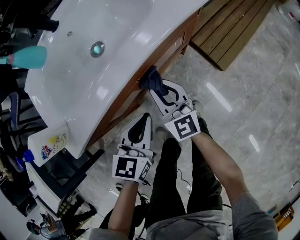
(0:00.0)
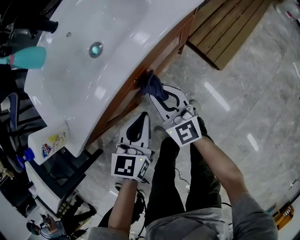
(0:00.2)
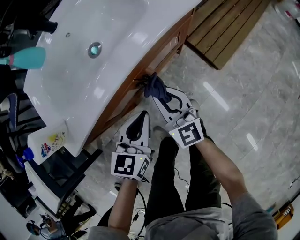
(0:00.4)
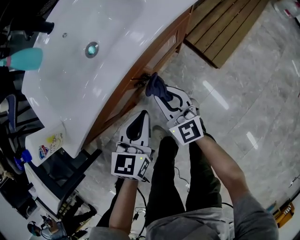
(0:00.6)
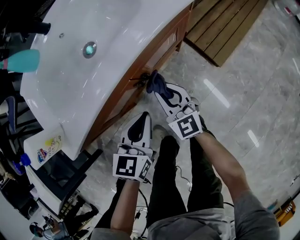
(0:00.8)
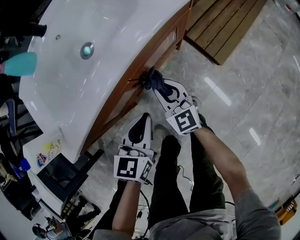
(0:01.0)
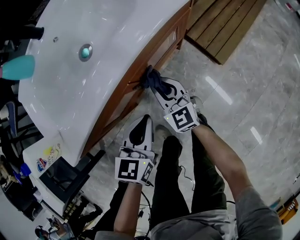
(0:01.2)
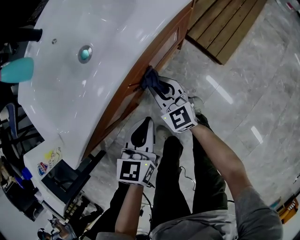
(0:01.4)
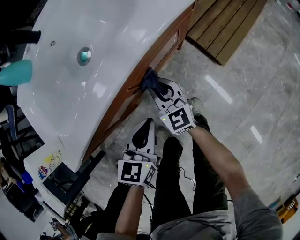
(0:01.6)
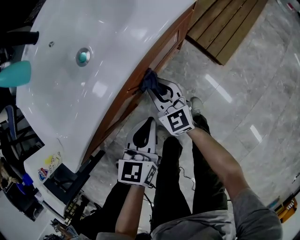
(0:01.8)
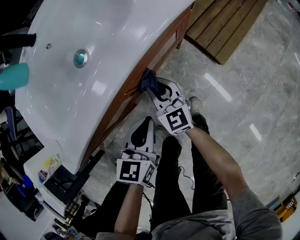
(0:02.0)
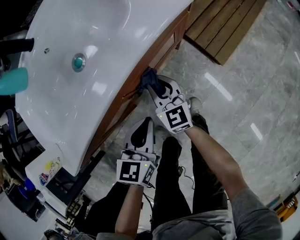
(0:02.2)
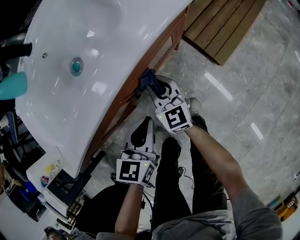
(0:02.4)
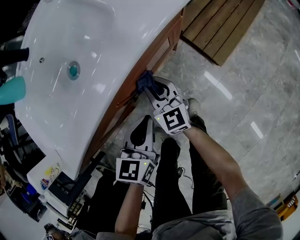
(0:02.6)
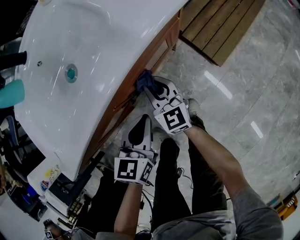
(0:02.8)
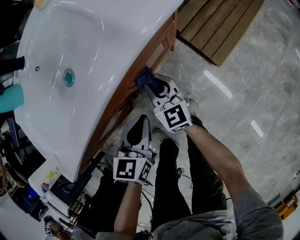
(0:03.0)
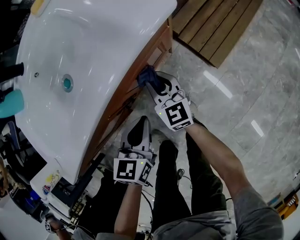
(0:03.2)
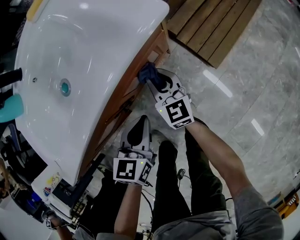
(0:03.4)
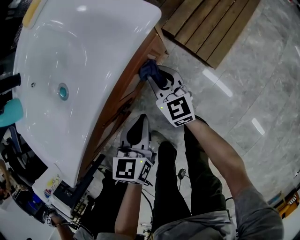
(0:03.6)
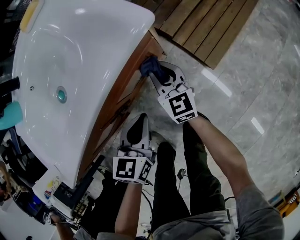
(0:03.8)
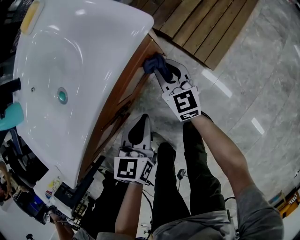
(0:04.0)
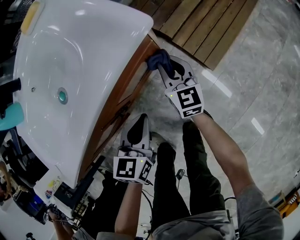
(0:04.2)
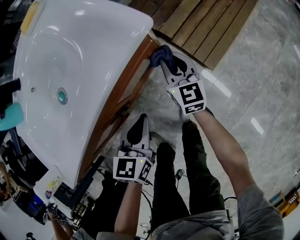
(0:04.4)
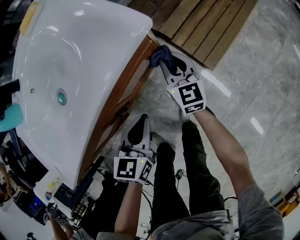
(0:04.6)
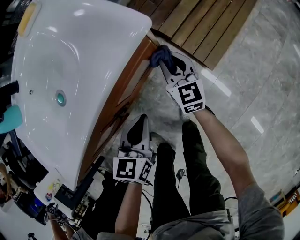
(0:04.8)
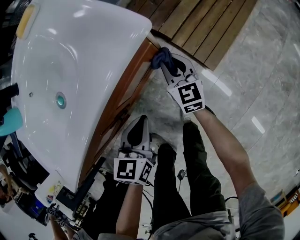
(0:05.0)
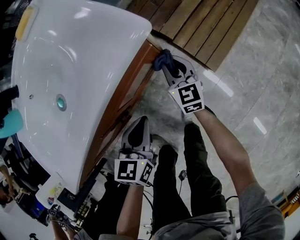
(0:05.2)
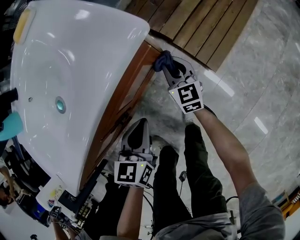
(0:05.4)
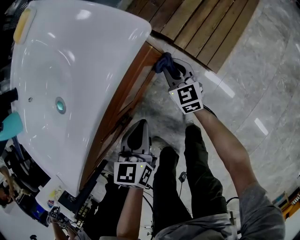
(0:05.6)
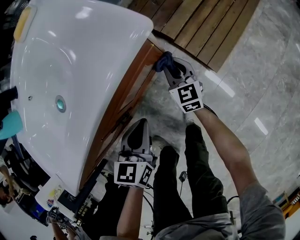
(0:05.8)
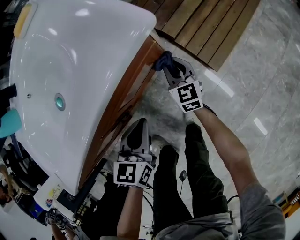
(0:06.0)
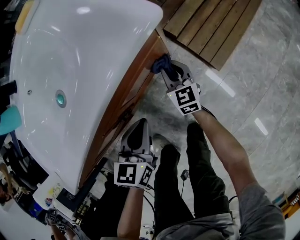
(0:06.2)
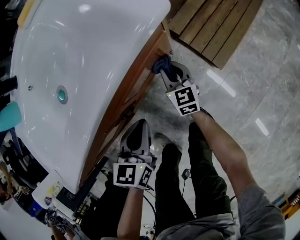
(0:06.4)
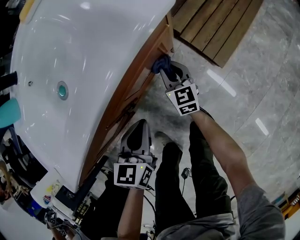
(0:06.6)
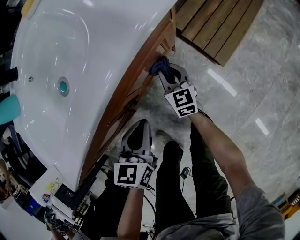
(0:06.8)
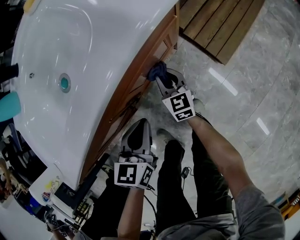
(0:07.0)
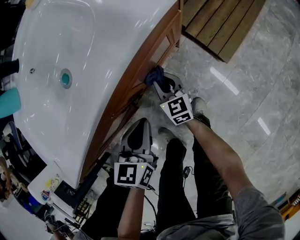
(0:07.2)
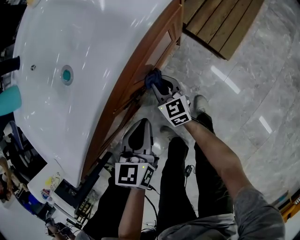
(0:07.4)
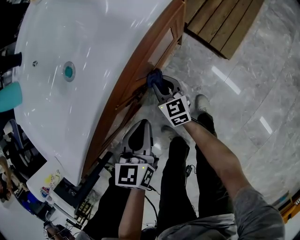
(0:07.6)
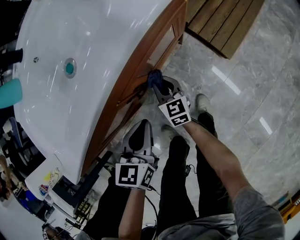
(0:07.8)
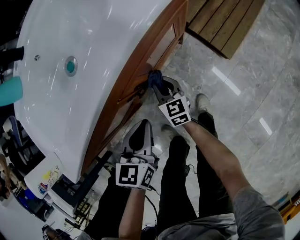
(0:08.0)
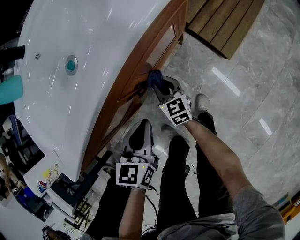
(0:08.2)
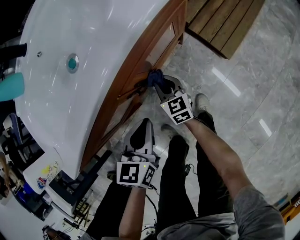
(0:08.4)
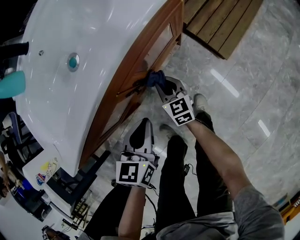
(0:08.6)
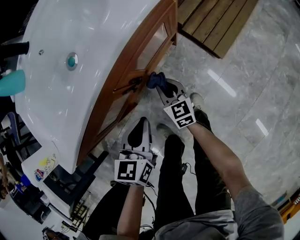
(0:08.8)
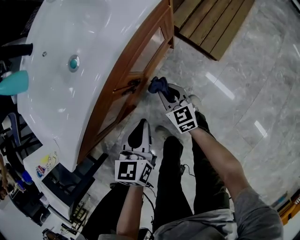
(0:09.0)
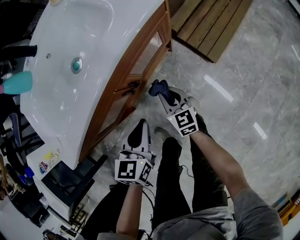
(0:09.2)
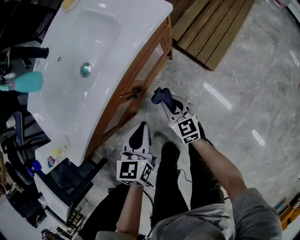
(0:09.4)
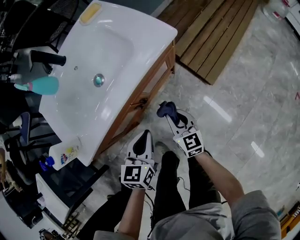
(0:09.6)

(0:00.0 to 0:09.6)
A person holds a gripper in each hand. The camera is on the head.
0:00.0 - 0:01.6: The right gripper heads downward, covering some 10 cm.
0:01.6 - 0:03.2: The left gripper heads forward and to the right, covering about 10 cm. Meanwhile the right gripper is displaced to the right and forward by roughly 10 cm.
0:03.2 - 0:04.8: The left gripper moves about 5 cm; the right gripper moves to the right and forward, roughly 15 cm.
0:04.8 - 0:06.4: The right gripper travels downward by roughly 10 cm.
0:06.4 - 0:08.0: The right gripper travels to the left and backward by roughly 15 cm. The left gripper travels backward and to the left by roughly 10 cm.
0:08.0 - 0:09.6: The left gripper moves upward, approximately 10 cm, while the right gripper heads upward, to the right and backward, covering approximately 20 cm.

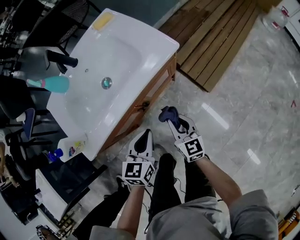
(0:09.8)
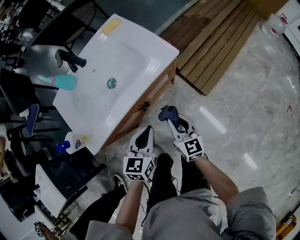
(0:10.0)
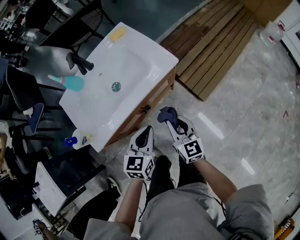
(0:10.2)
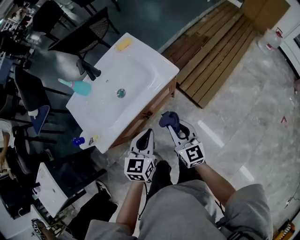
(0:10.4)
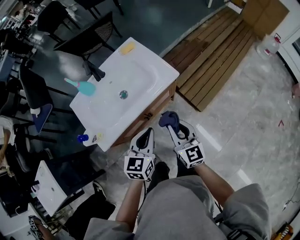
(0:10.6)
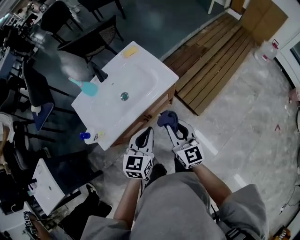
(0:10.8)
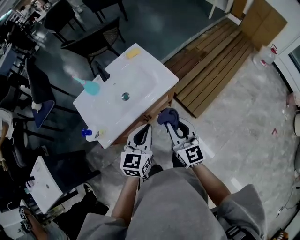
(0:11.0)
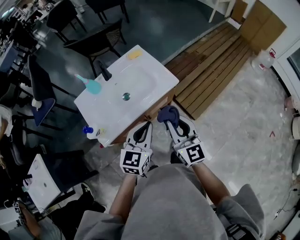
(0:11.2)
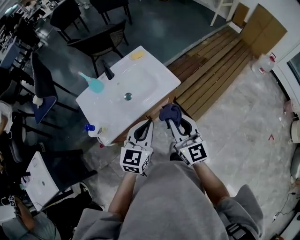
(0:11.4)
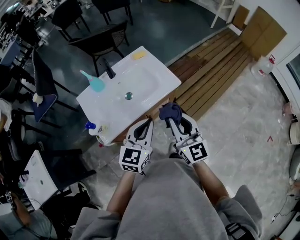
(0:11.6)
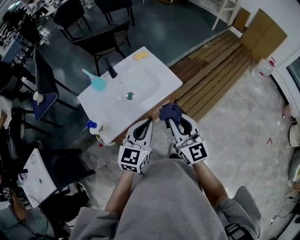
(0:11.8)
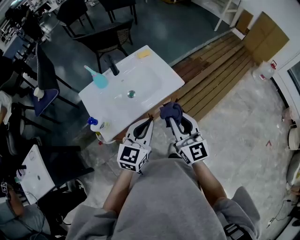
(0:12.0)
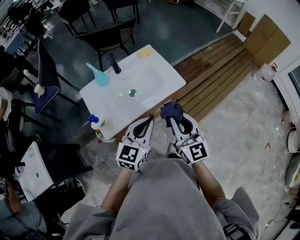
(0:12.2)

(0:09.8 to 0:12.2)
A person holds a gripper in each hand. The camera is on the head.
0:09.8 - 0:11.0: The grippers both shift upward by about 25 cm.
0:11.0 - 0:12.2: The right gripper heads upward, covering some 5 cm; the left gripper ends up approximately 5 cm from where it was.

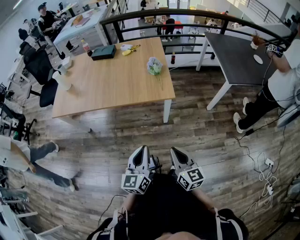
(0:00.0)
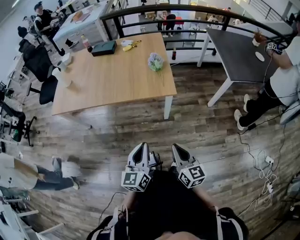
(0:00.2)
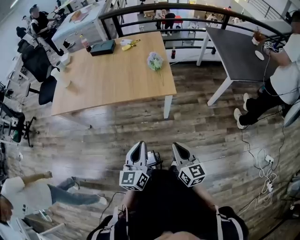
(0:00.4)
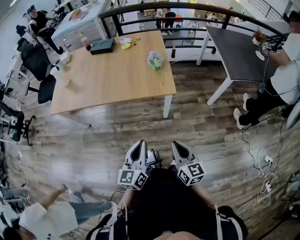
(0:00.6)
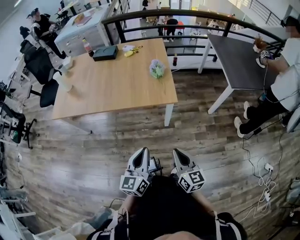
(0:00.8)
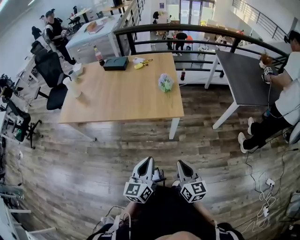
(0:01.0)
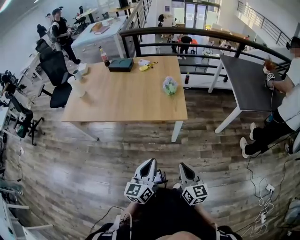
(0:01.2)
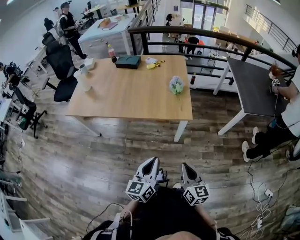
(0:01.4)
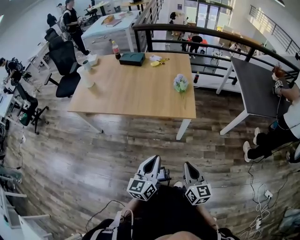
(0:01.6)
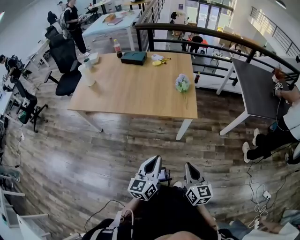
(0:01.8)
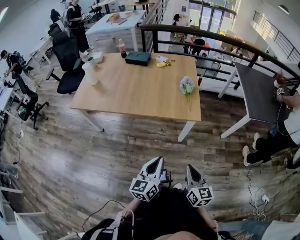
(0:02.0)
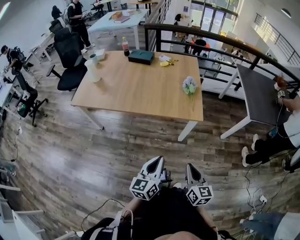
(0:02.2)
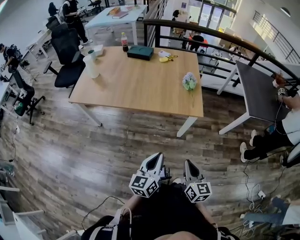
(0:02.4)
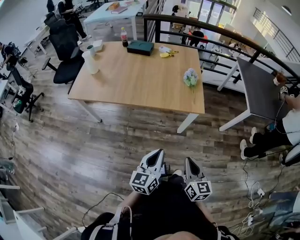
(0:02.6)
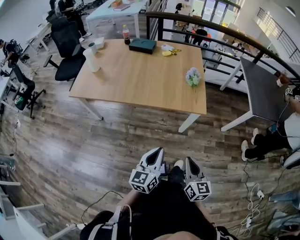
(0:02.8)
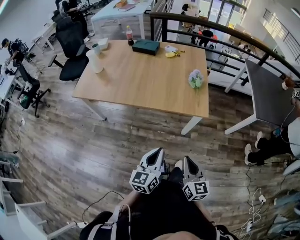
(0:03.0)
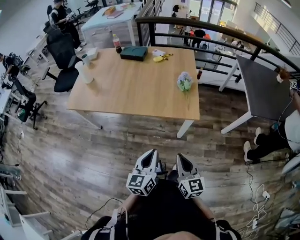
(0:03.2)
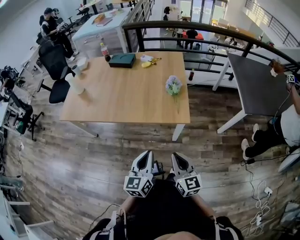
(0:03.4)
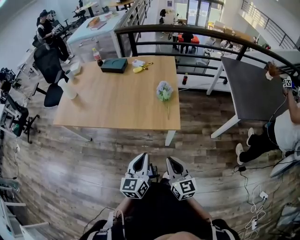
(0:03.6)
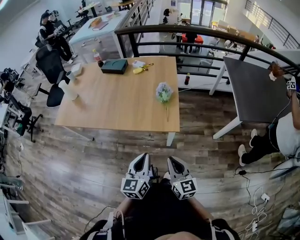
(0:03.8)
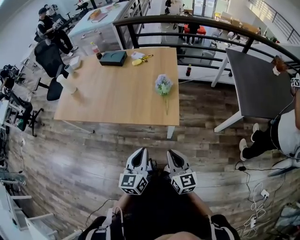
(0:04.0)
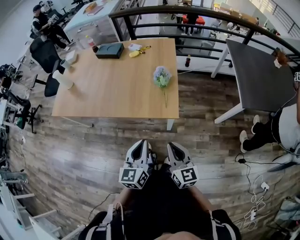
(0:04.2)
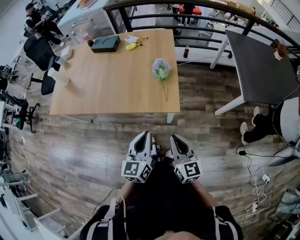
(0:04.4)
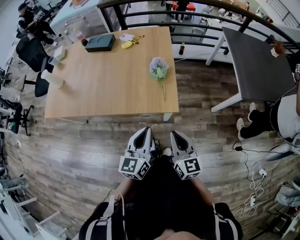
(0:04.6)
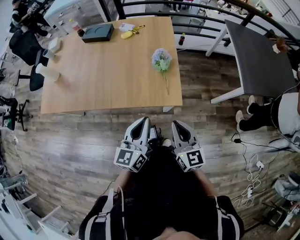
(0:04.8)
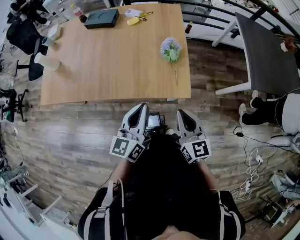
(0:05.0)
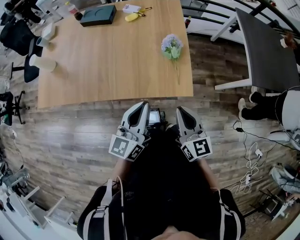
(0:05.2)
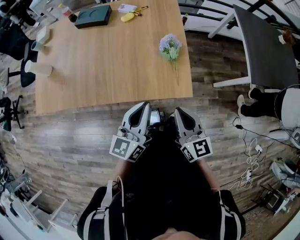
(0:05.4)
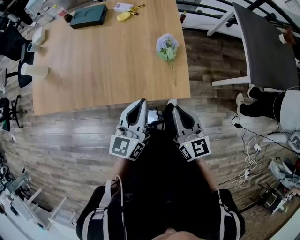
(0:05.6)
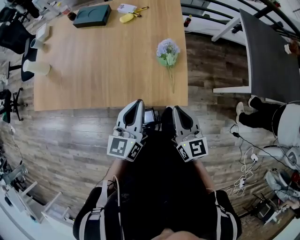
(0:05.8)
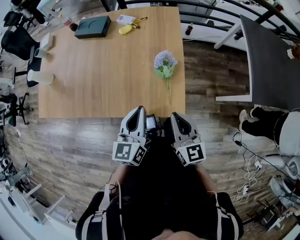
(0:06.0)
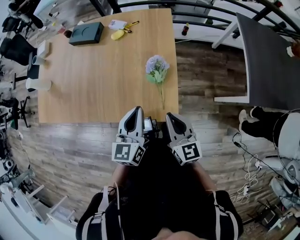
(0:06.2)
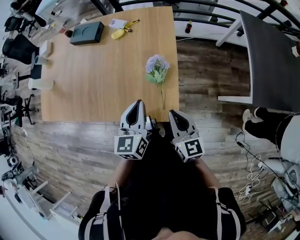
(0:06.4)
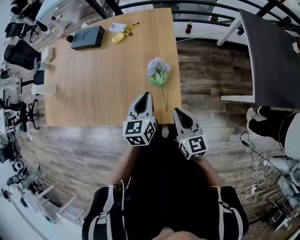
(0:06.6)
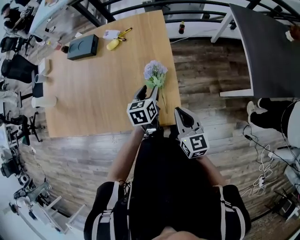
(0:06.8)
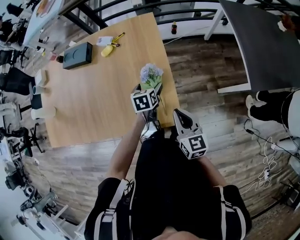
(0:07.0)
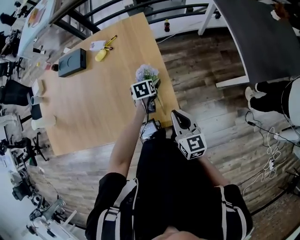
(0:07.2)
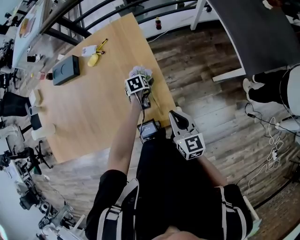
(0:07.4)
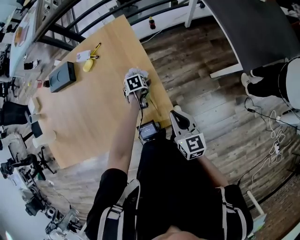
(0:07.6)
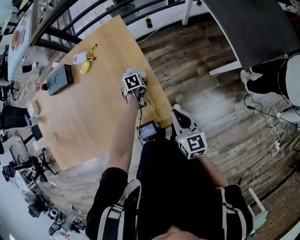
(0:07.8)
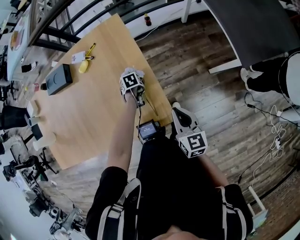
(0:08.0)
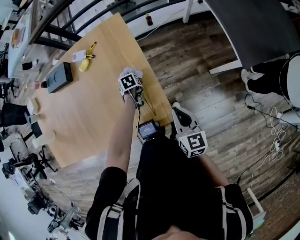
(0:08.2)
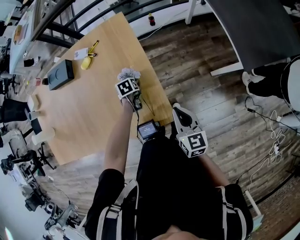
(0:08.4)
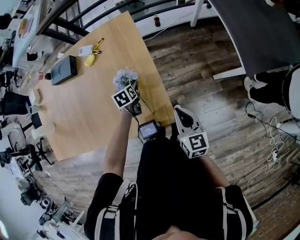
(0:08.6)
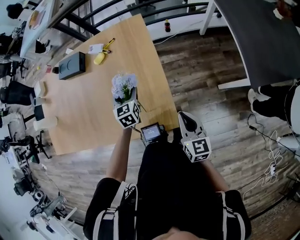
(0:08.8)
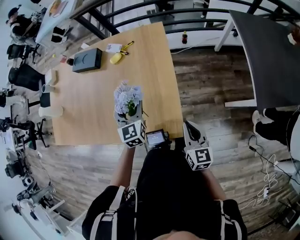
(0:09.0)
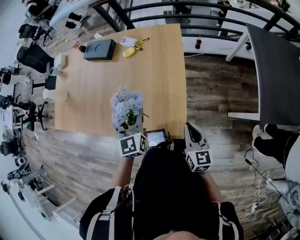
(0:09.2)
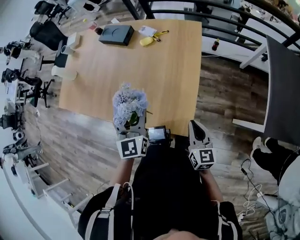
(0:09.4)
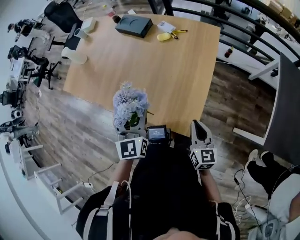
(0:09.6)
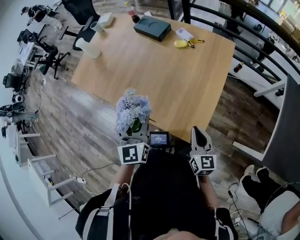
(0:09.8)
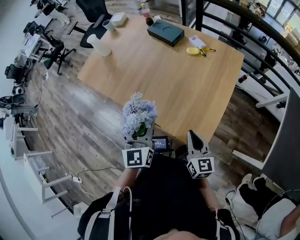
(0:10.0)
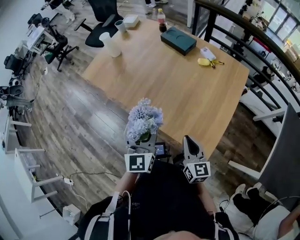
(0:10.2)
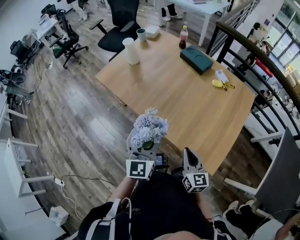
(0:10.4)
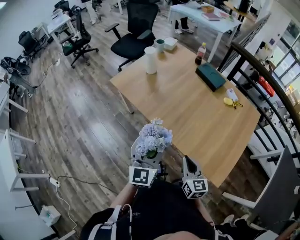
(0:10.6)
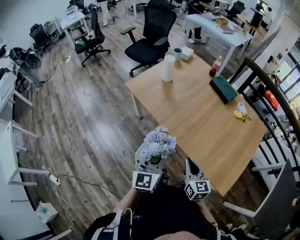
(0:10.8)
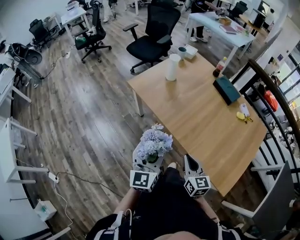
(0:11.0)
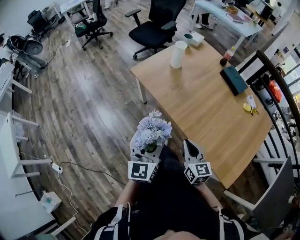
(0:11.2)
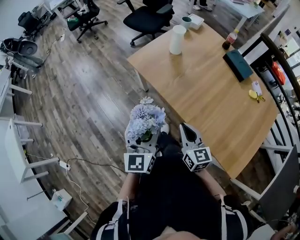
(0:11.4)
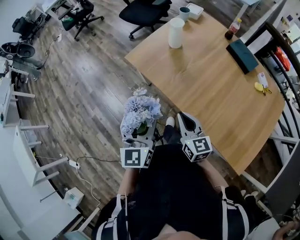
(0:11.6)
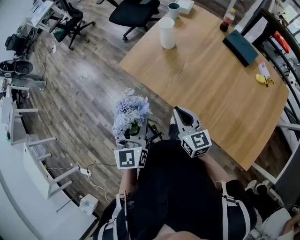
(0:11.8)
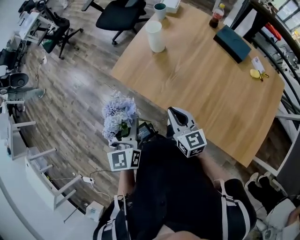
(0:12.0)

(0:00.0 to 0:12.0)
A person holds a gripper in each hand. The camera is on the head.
0:00.0 - 0:01.6: The left gripper changes place by some 5 cm.
0:01.6 - 0:03.0: The grippers both shift to the left by some 5 cm.
0:03.0 - 0:04.4: Both grippers move to the right and forward, roughly 25 cm.
0:04.4 - 0:06.0: Both grippers travel together forward, roughly 20 cm.
0:06.0 - 0:07.6: The left gripper heads downward and forward, covering approximately 40 cm, tips its fingers downward by roughly 60 degrees, and opens. Meanwhile the right gripper heads to the right, downward and forward, covering roughly 15 cm, and turns by some 20 degrees.
0:07.6 - 0:09.0: The left gripper is displaced upward by about 25 cm, and angles its fingers upward, by about 60 degrees.
0:09.0 - 0:10.4: The right gripper shifts by about 35 cm, and changes its angle by roughly 40 degrees. Meanwhile the left gripper moves about 40 cm, and turns by roughly 30 degrees.
0:10.4 - 0:12.0: Both grippers are carried forward and to the left, some 40 cm.
